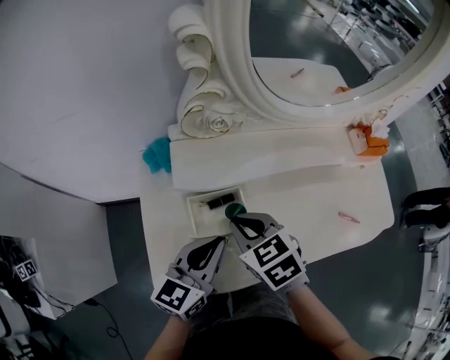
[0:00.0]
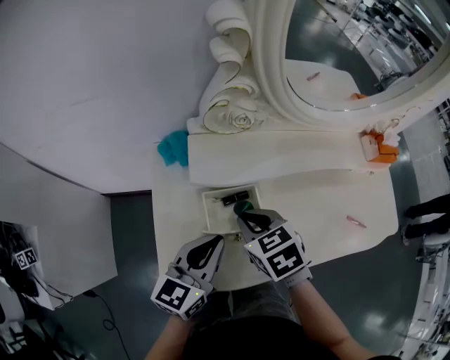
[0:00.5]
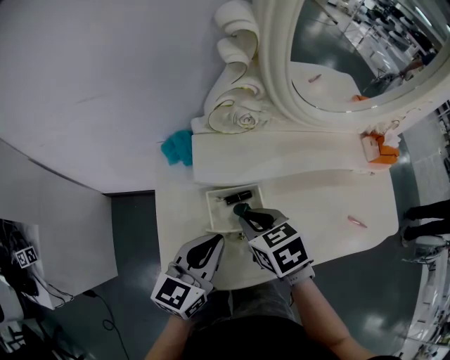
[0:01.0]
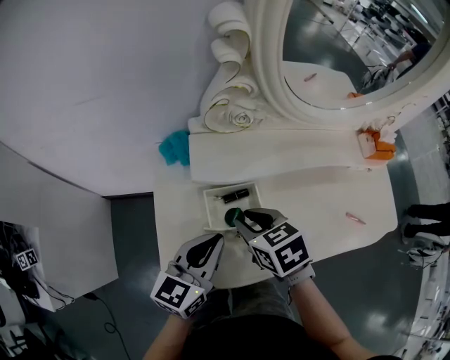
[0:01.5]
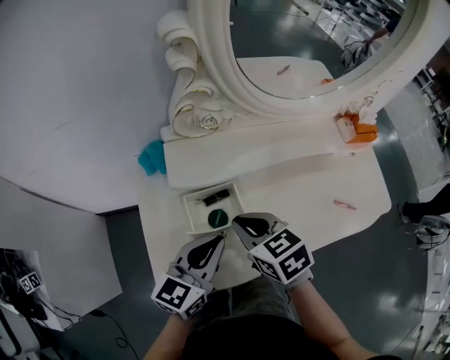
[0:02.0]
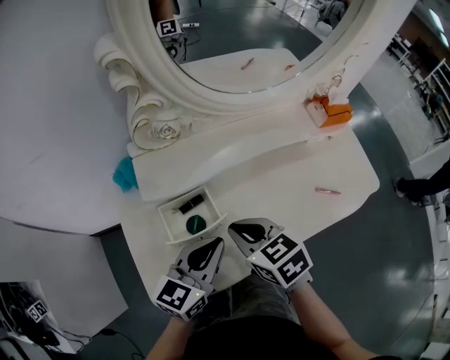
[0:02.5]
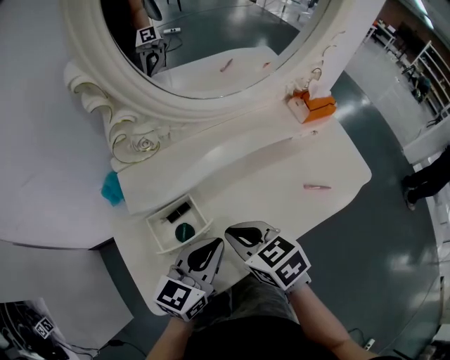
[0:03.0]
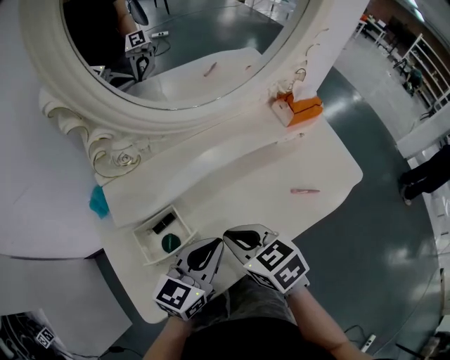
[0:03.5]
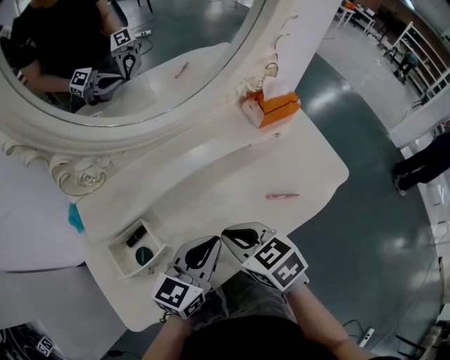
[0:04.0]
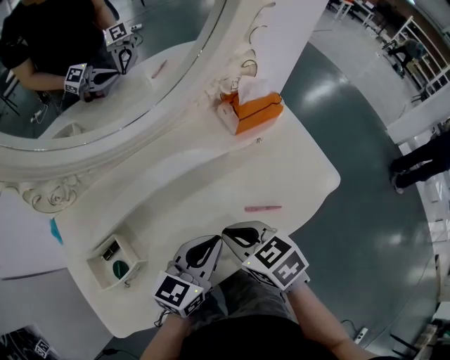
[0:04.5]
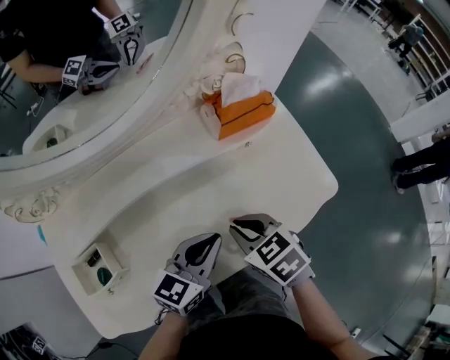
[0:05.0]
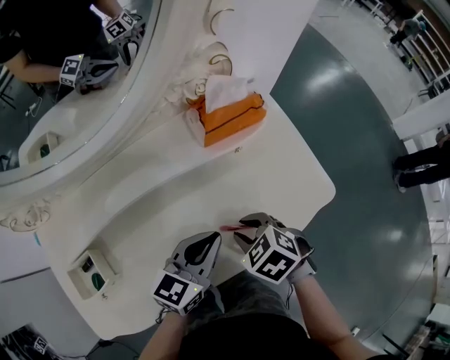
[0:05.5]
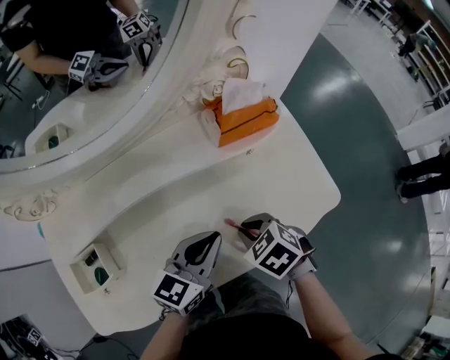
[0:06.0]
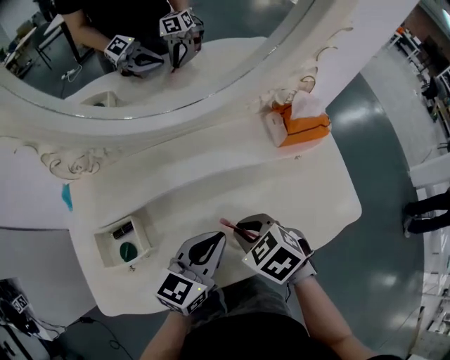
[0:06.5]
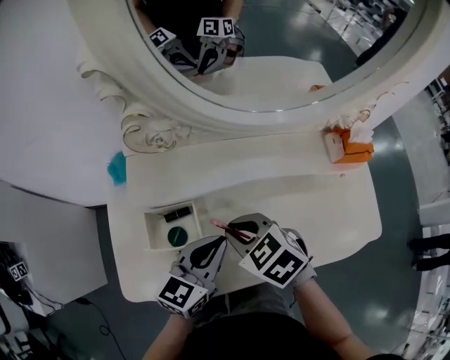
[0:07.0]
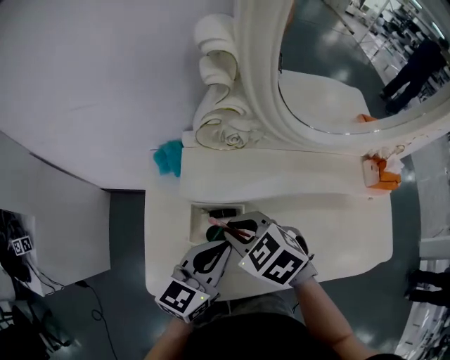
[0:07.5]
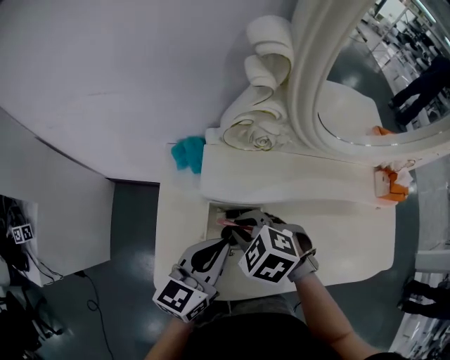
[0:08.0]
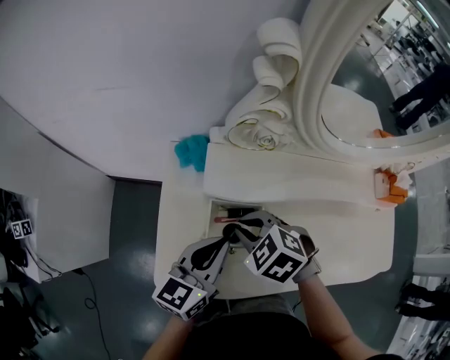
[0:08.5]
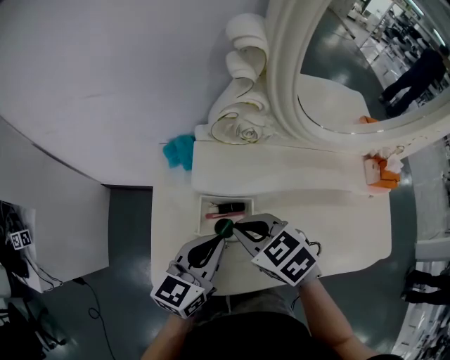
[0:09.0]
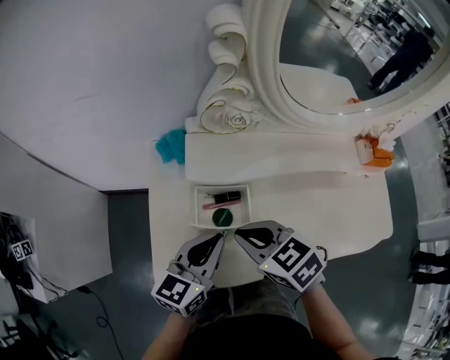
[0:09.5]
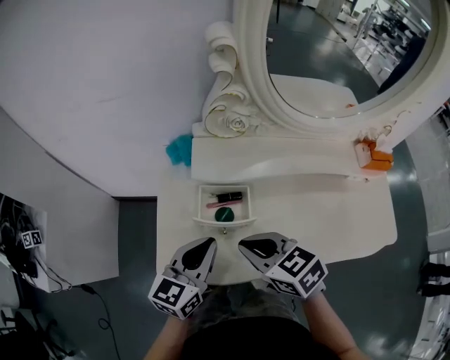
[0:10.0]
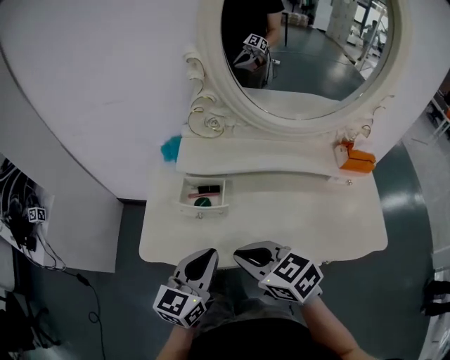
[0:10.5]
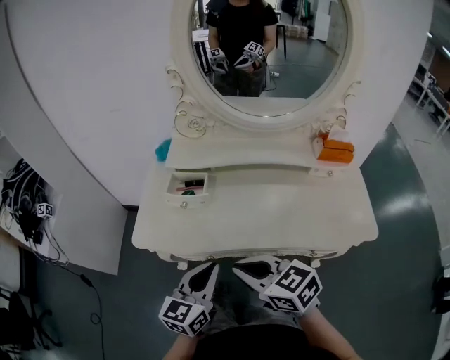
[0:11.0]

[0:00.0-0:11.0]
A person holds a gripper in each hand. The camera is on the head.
0:00.0 to 0:02.0: There are only small adjustments of the grippers.
0:02.0 to 0:03.5: Both grippers move to the right, about 10 cm.
0:03.5 to 0:05.5: The right gripper heads to the right, covering roughly 30 cm, turns by approximately 30 degrees, and opens; the left gripper heads to the right and forward, covering roughly 25 cm.
0:05.5 to 0:07.5: The right gripper moves about 40 cm, and changes its angle by roughly 40 degrees; the left gripper ends up approximately 40 cm from where it was, and turns by roughly 30 degrees.
0:07.5 to 0:09.0: The grippers move only a little.
0:09.0 to 0:11.0: Both grippers move backward, about 25 cm. The right gripper swivels some 20 degrees.

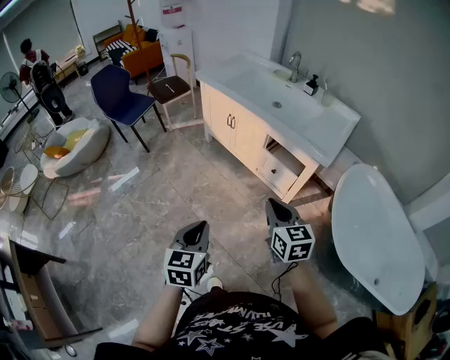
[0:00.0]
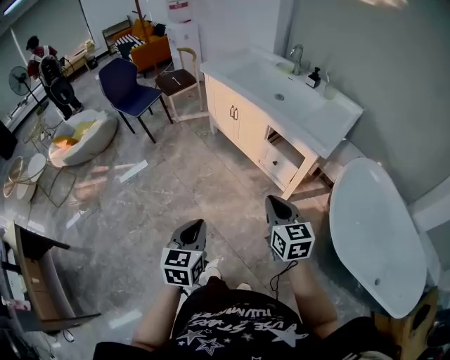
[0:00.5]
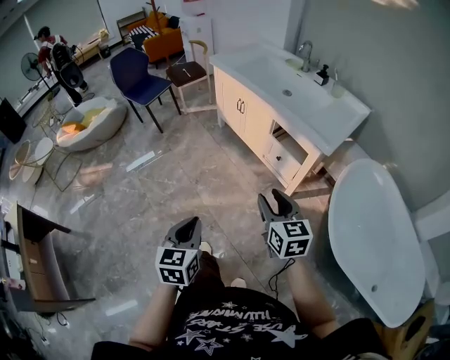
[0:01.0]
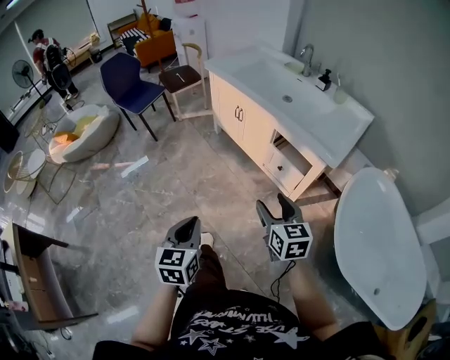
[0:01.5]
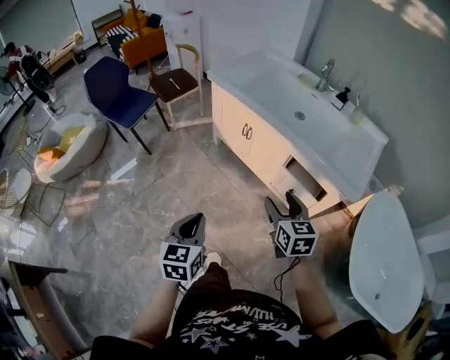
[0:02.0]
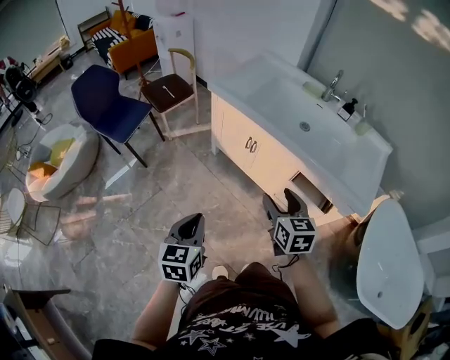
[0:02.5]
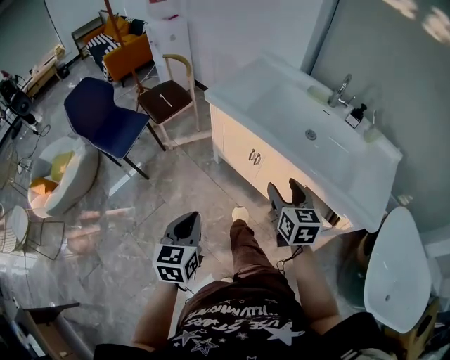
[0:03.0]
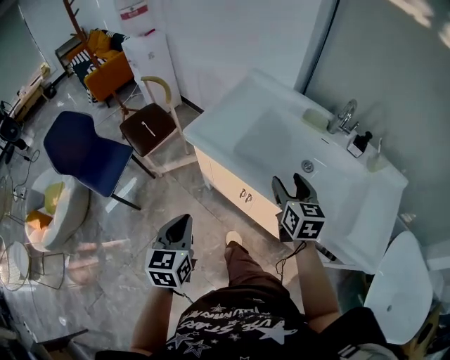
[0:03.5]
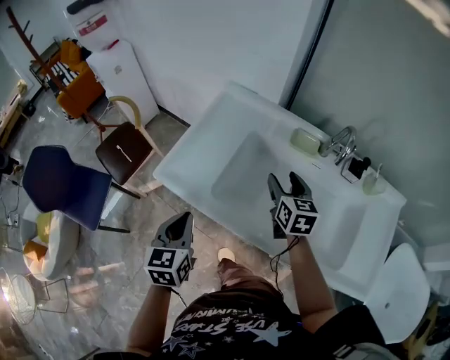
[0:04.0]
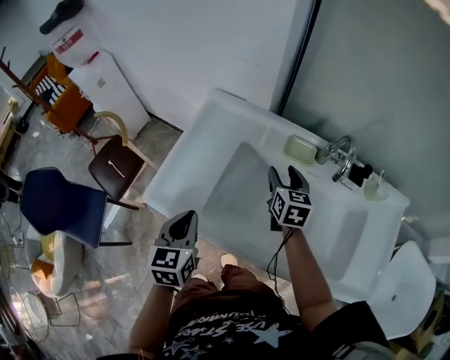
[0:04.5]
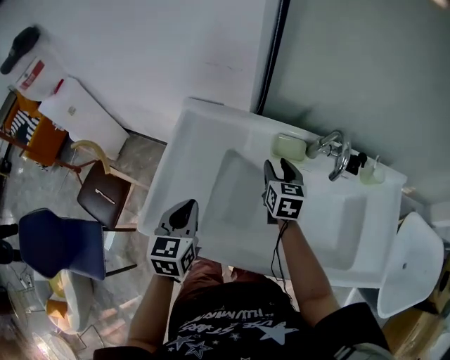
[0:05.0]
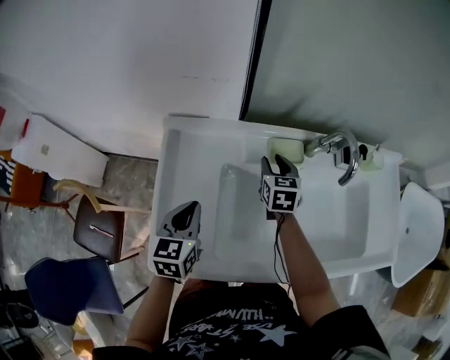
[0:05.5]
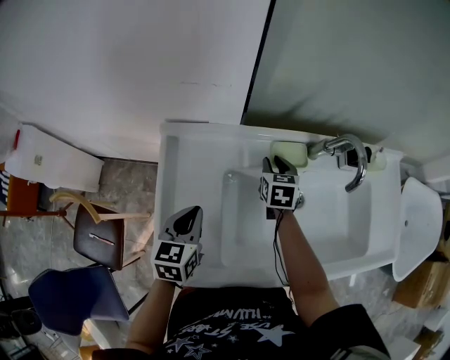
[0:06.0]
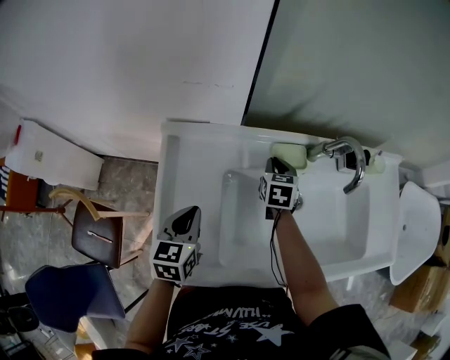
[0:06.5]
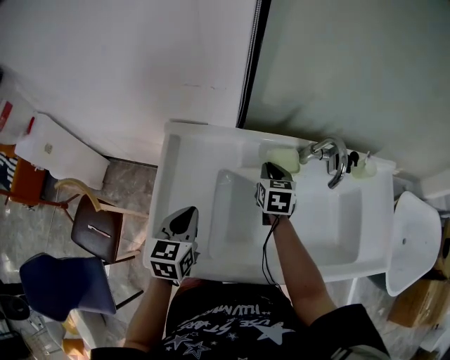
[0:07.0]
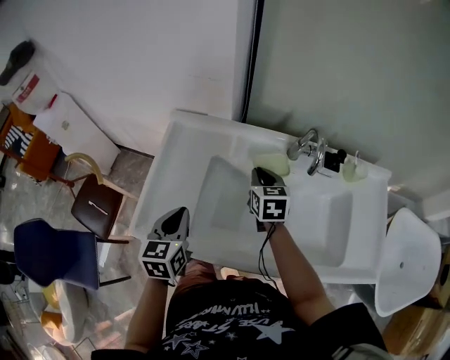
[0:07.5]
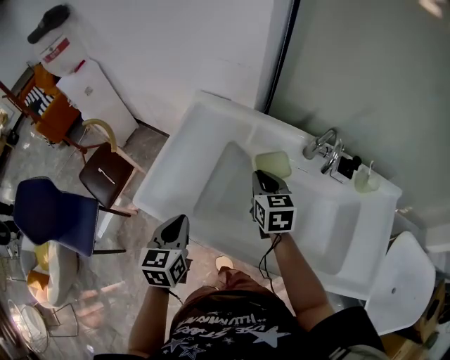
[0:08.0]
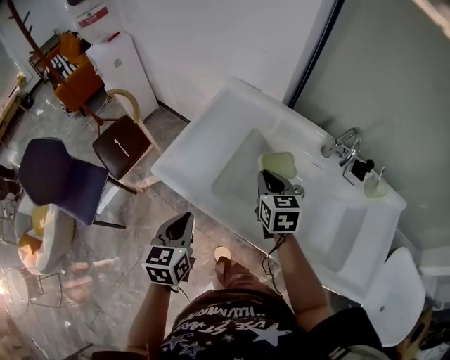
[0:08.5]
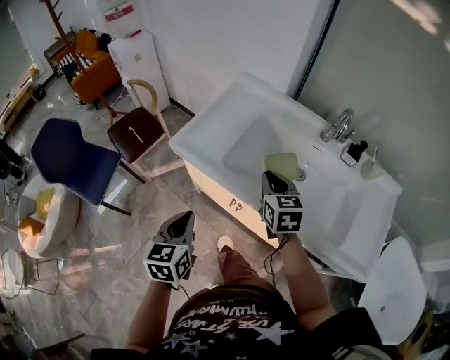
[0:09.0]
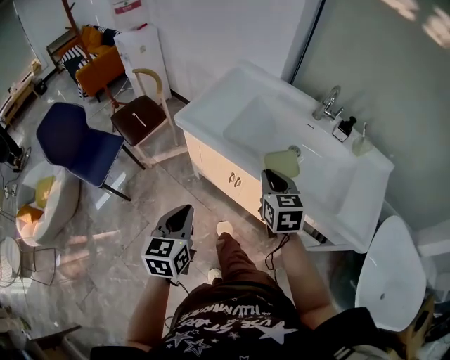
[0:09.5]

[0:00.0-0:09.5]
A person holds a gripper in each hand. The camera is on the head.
0:00.0 to 0:02.0: Both grippers move forward, about 20 cm. The right gripper opens.
0:02.0 to 0:04.0: The pair of grippers is taken forward, some 60 cm. The right gripper swivels about 20 degrees.
0:04.0 to 0:05.5: The left gripper shifts by about 30 cm, and turns by approximately 30 degrees; the right gripper shifts by about 20 cm, rotates about 30 degrees, and closes up.
0:05.5 to 0:07.5: The right gripper moves backward and upward, approximately 10 cm, and closes its fingers. Meanwhile the left gripper travels backward and to the right by some 10 cm.
0:07.5 to 0:09.5: The two grippers go roughly 40 cm backward. The right gripper rotates about 20 degrees.

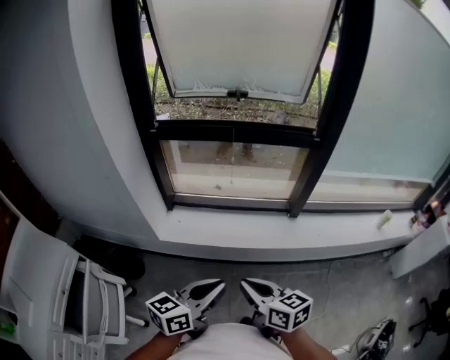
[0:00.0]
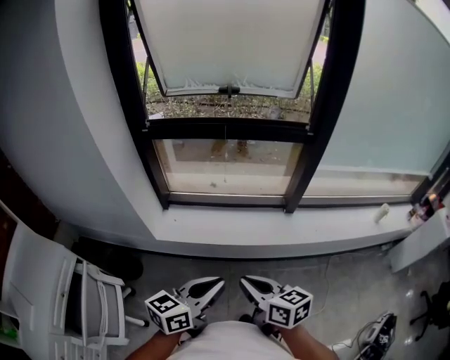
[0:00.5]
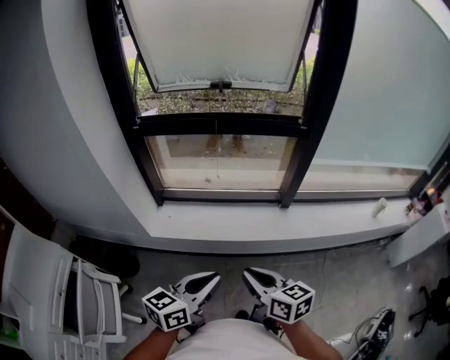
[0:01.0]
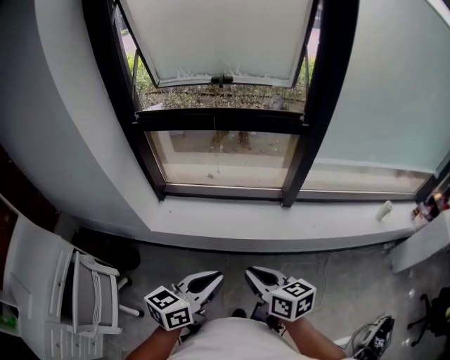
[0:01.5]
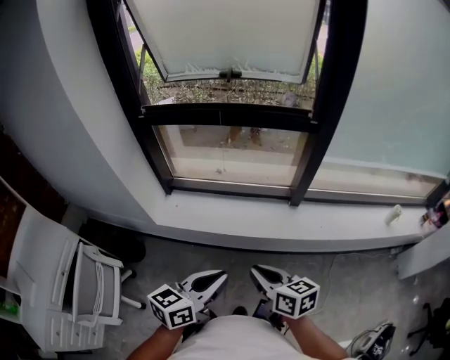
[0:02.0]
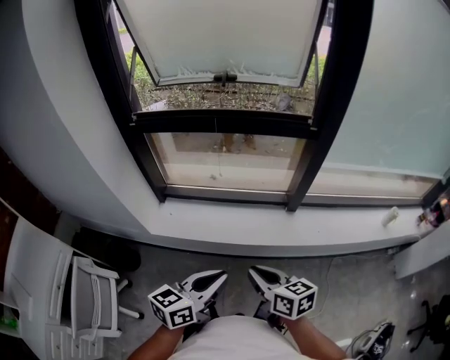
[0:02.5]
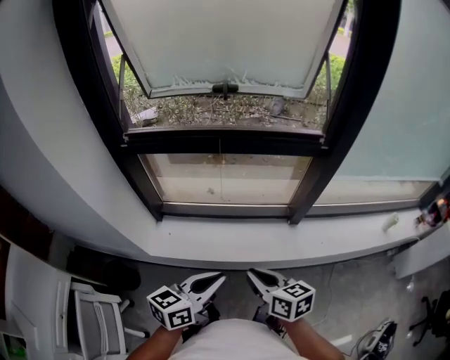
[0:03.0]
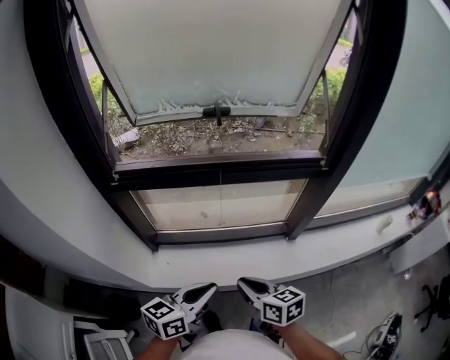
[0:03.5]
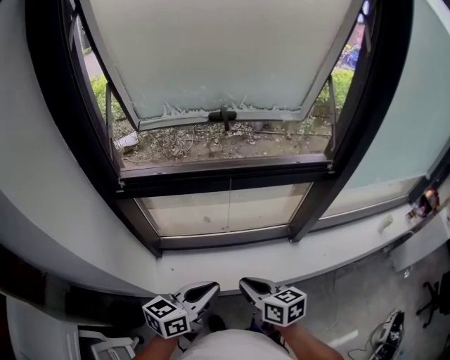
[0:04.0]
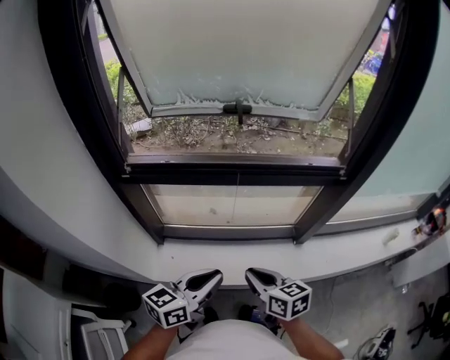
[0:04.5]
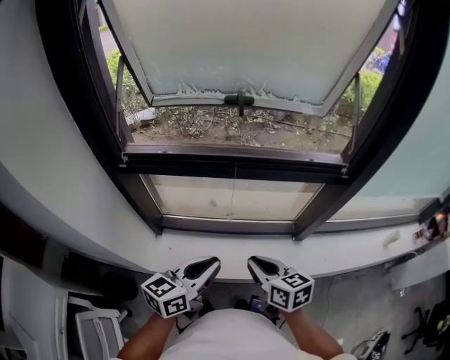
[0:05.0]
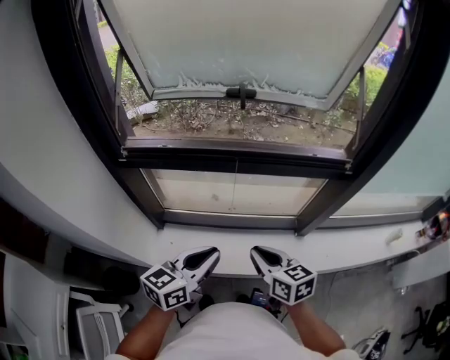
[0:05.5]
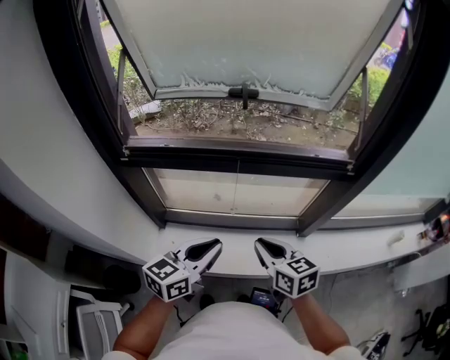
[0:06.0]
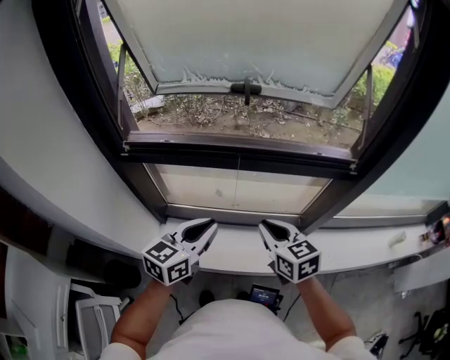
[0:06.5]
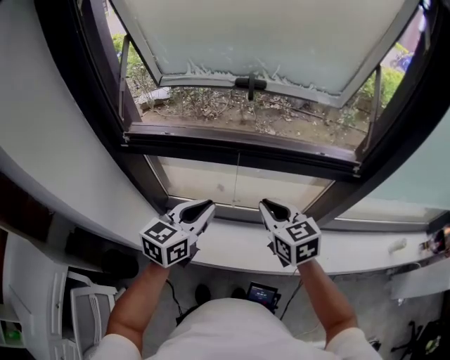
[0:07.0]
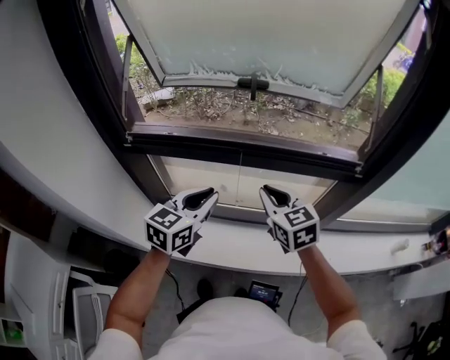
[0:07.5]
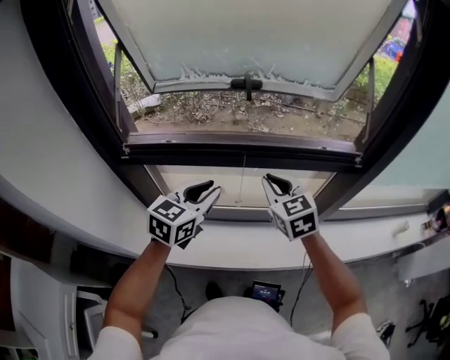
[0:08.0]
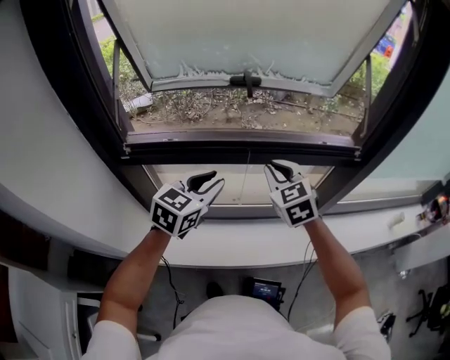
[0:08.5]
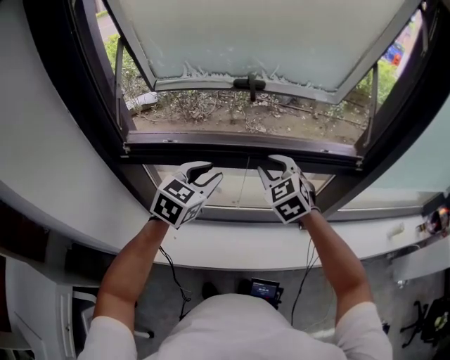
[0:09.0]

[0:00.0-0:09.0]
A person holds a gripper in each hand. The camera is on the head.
0:00.0 to 0:02.0: The two grippers go approximately 10 cm to the right.
0:02.0 to 0:04.5: Both grippers move forward and to the left, approximately 30 cm.
0:04.5 to 0:07.0: Both grippers move forward, approximately 15 cm. The right gripper turns by roughly 30 degrees; the left gripper changes its angle by roughly 20 degrees.
0:07.0 to 0:09.0: The two grippers go approximately 10 cm forward. The right gripper rotates about 30 degrees, while the left gripper rotates some 20 degrees, and opens.
